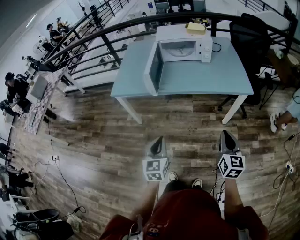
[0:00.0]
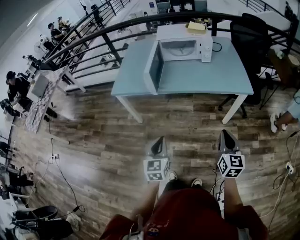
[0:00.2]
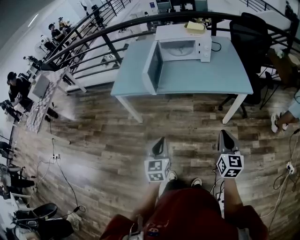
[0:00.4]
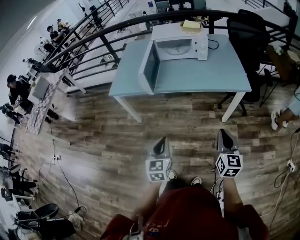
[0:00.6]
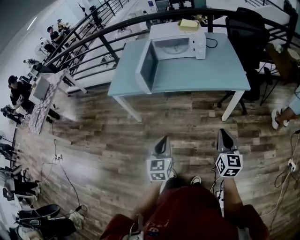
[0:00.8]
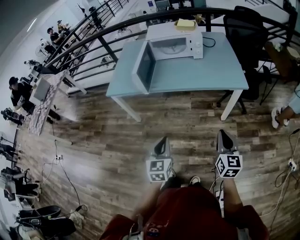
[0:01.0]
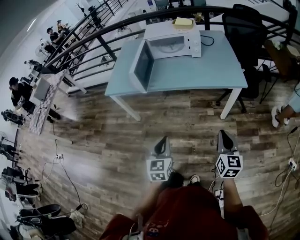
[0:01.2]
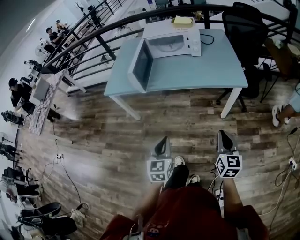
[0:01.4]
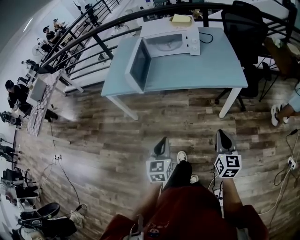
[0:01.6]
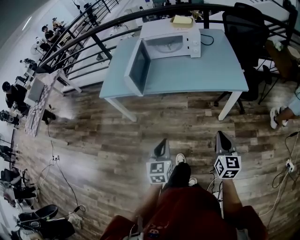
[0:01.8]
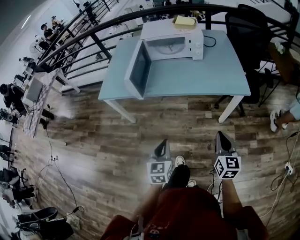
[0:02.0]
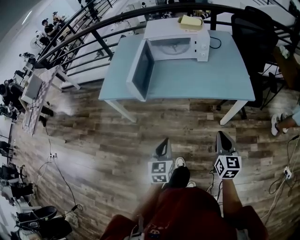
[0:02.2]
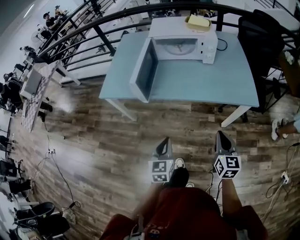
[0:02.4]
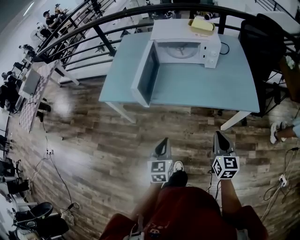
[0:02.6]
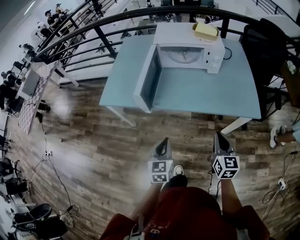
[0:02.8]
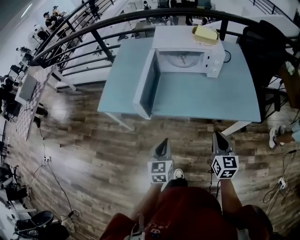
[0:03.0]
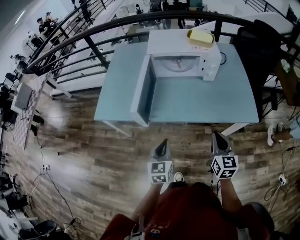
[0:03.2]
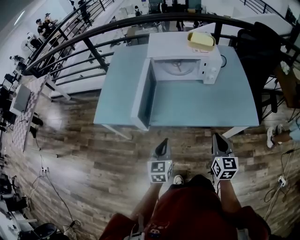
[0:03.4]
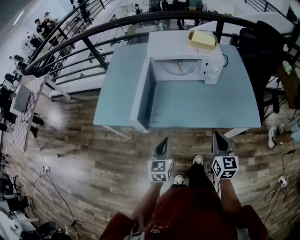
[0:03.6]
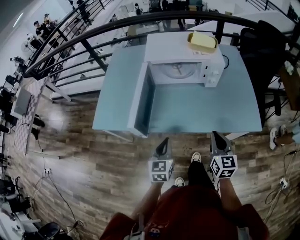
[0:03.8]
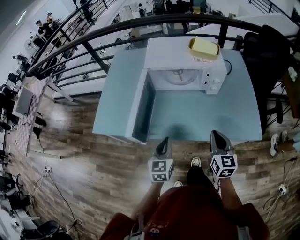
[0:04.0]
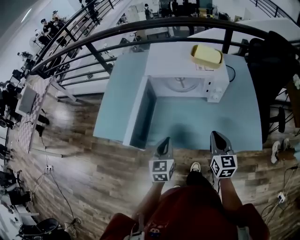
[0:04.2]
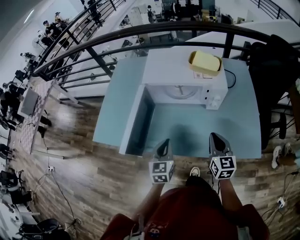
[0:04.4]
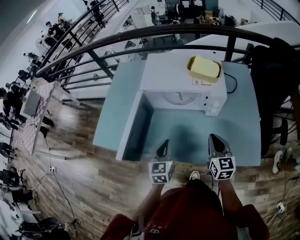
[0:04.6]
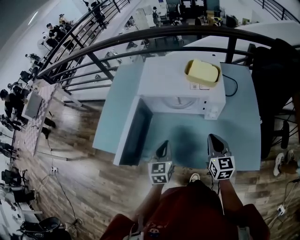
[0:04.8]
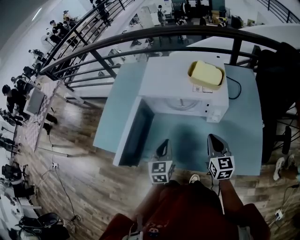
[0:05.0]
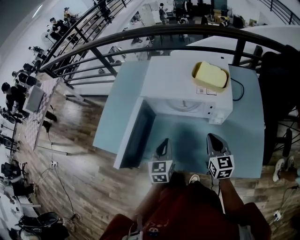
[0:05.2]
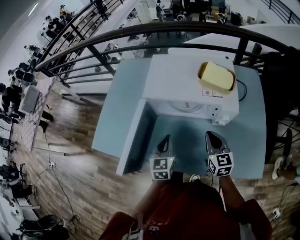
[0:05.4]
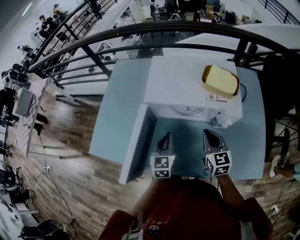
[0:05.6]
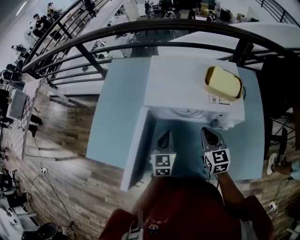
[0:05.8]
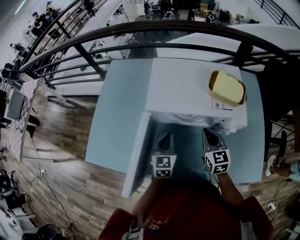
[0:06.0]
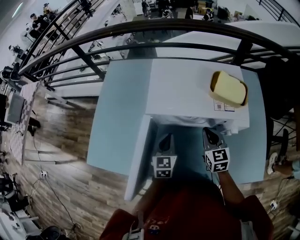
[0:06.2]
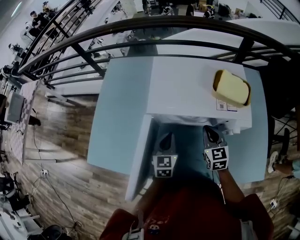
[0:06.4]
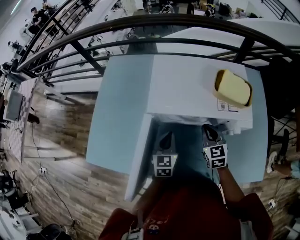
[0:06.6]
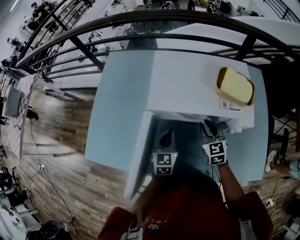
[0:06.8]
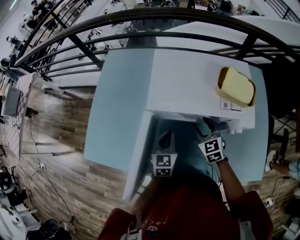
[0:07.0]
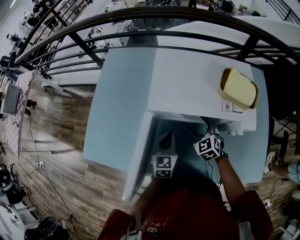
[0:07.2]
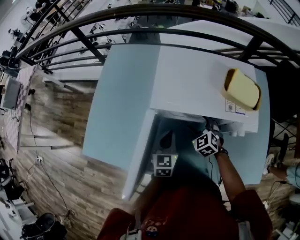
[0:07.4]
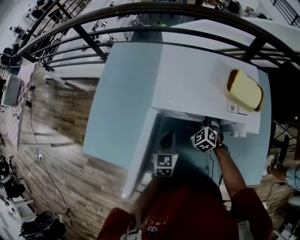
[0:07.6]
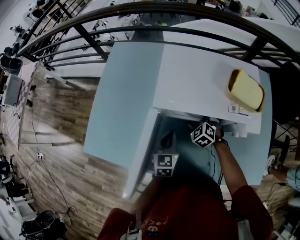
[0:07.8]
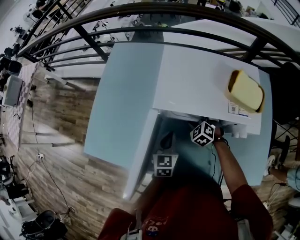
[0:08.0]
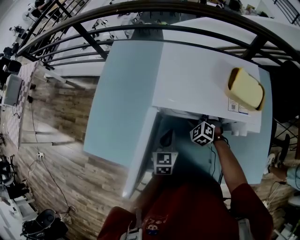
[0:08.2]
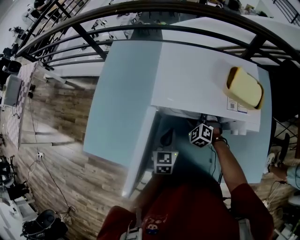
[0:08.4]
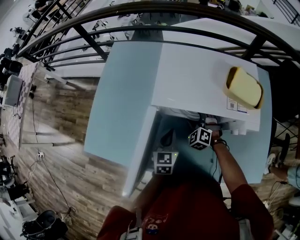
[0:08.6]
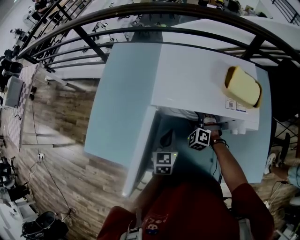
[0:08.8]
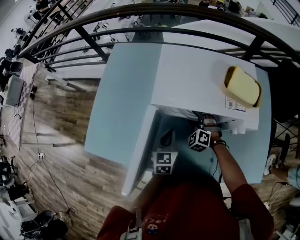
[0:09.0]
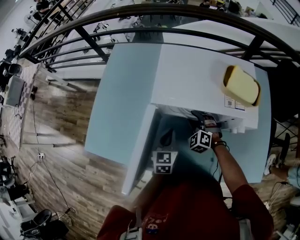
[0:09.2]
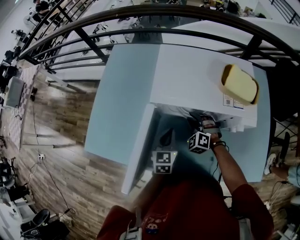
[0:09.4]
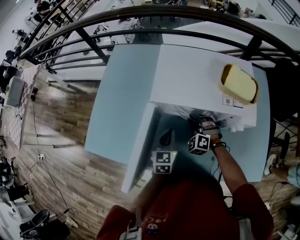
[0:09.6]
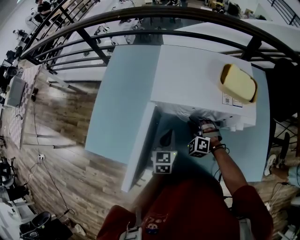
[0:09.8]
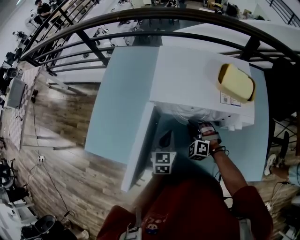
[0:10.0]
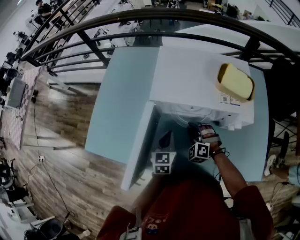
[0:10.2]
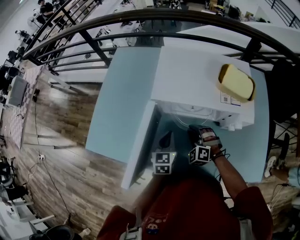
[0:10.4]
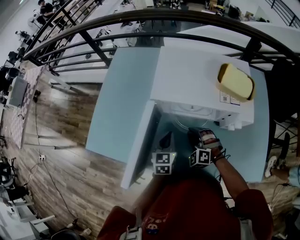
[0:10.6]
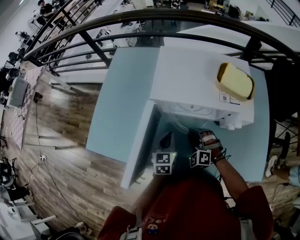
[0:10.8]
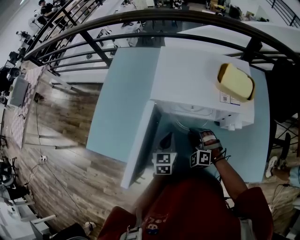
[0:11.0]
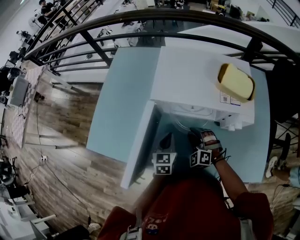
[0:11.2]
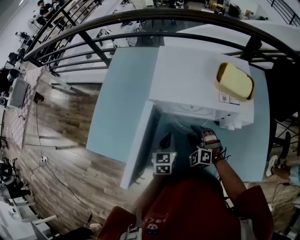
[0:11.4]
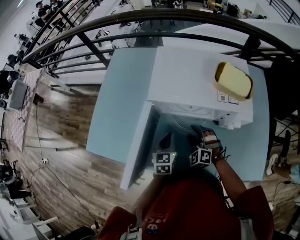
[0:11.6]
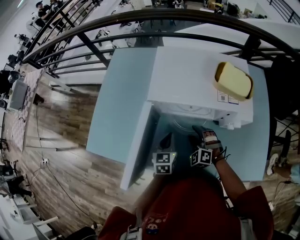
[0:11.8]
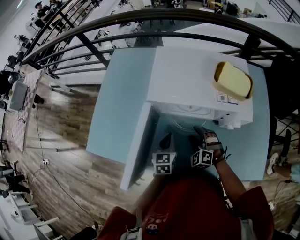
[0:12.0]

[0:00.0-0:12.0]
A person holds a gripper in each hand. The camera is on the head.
0:00.0 to 0:01.6: The two grippers go roughly 10 cm to the right.
0:01.6 to 0:03.0: The right gripper moves forward and to the left, approximately 30 cm, while the left gripper heads forward, covering roughly 25 cm.
0:03.0 to 0:04.4: Both grippers move forward, approximately 25 cm.
0:04.4 to 0:06.0: Both grippers travel together forward, approximately 25 cm.
0:06.0 to 0:07.6: The right gripper goes approximately 20 cm downward, forward and to the left, rotates approximately 40 degrees, and opens. The left gripper ends up some 5 cm from where it was.
0:07.6 to 0:09.0: The right gripper closes.
0:09.0 to 0:10.4: The right gripper is displaced backward by roughly 10 cm.
0:10.4 to 0:12.0: The grippers make only small movements.

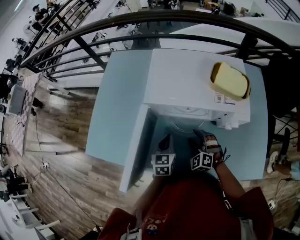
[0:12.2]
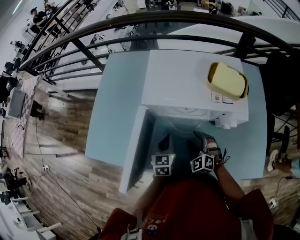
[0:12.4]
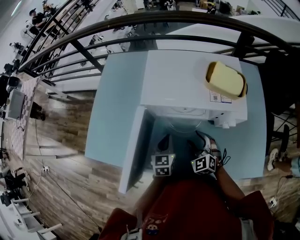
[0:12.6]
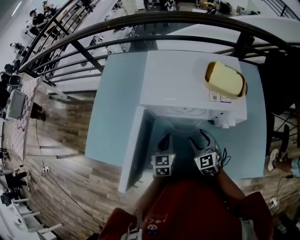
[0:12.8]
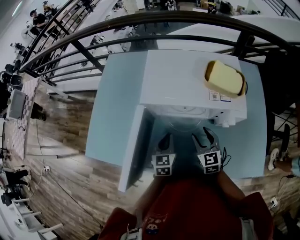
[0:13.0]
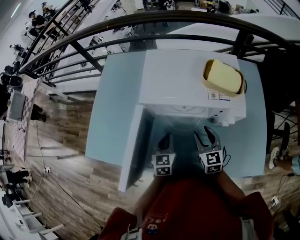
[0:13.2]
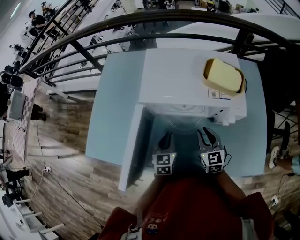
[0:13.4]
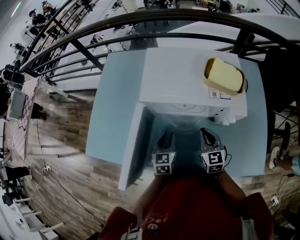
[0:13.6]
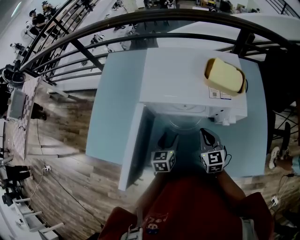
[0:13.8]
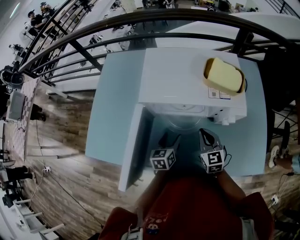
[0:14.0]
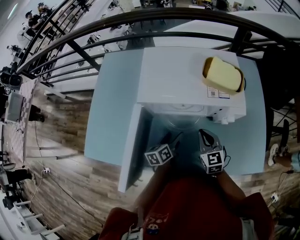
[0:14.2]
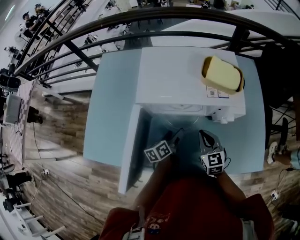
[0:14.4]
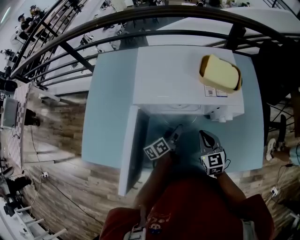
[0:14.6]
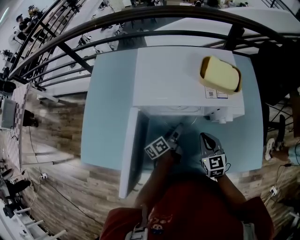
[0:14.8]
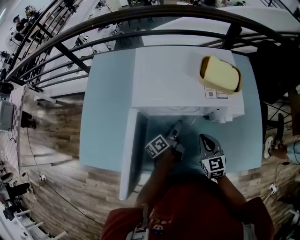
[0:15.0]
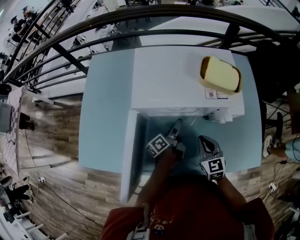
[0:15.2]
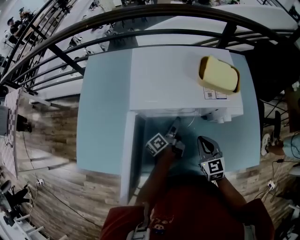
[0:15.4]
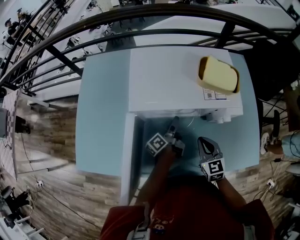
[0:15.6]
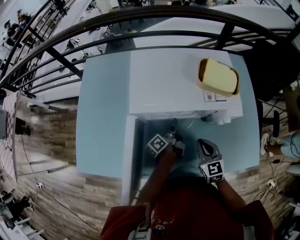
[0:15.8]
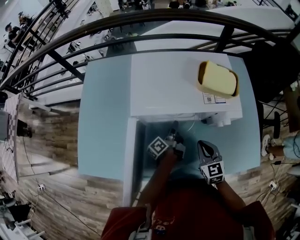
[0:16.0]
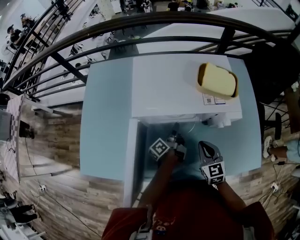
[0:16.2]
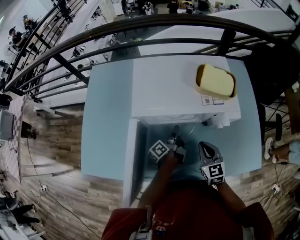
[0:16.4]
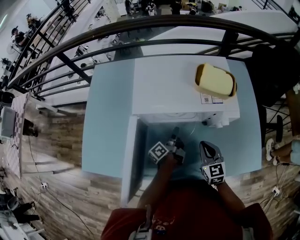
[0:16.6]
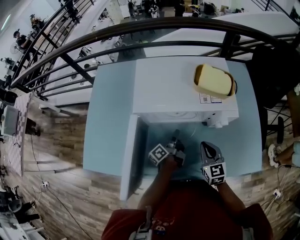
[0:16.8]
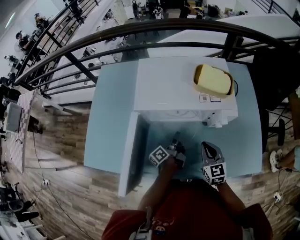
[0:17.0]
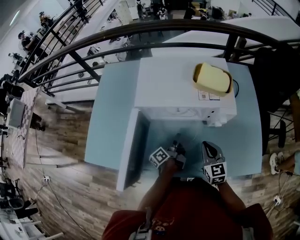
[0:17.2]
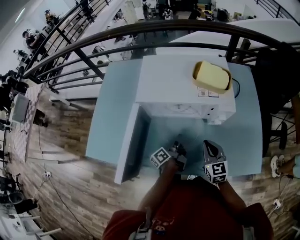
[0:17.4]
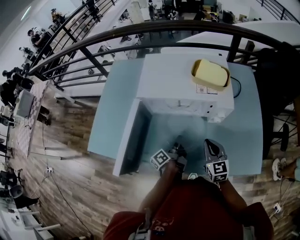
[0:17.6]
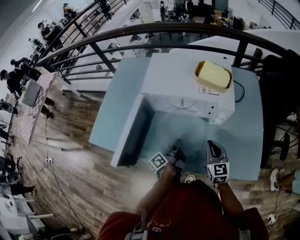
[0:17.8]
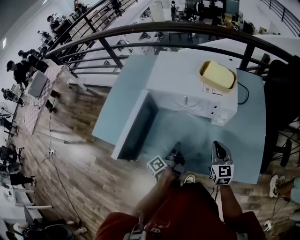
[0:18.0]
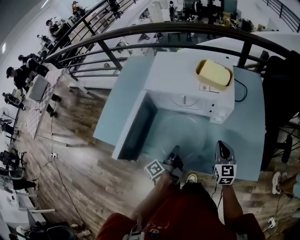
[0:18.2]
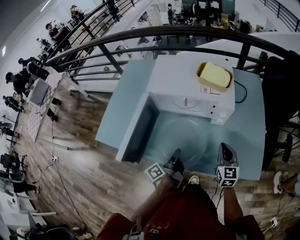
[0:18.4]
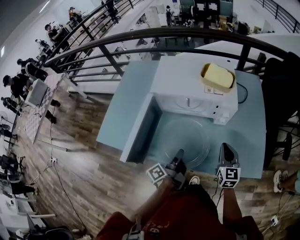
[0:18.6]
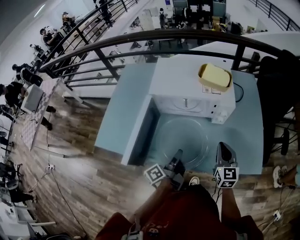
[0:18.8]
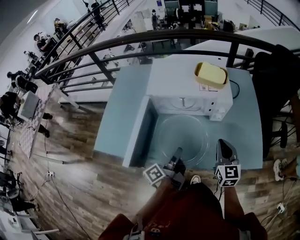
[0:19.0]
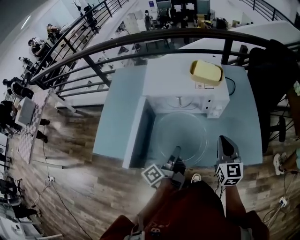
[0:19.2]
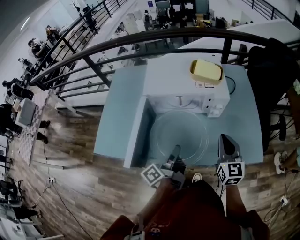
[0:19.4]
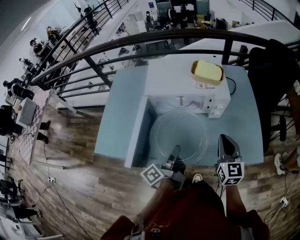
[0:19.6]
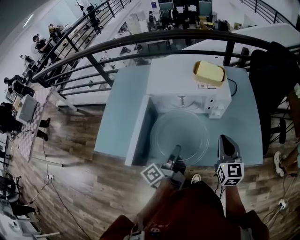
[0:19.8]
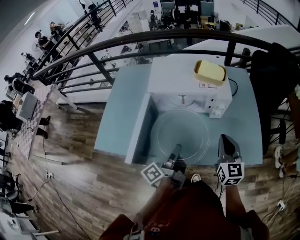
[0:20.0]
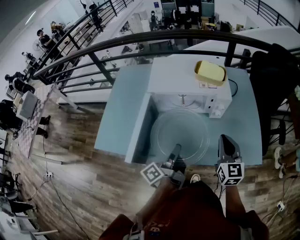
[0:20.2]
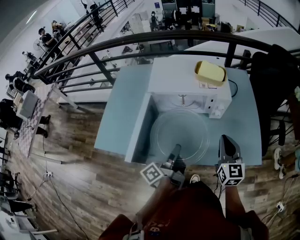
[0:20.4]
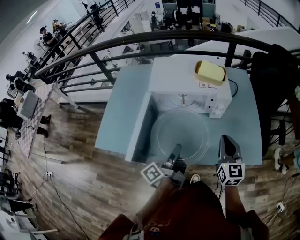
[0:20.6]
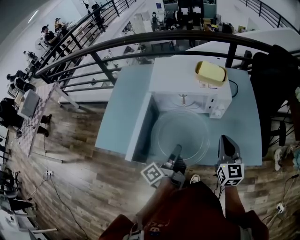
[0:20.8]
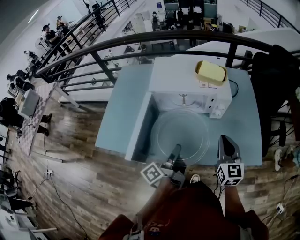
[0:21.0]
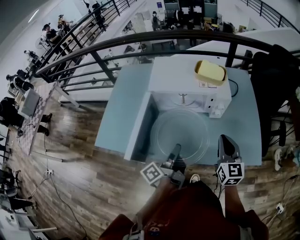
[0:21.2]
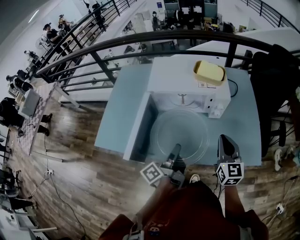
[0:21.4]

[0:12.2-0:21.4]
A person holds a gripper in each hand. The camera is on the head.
0:12.2 to 0:13.8: The right gripper travels upward and to the right by some 10 cm, rotates around the line of its fingers by roughly 50 degrees, clockwise from behind, and closes; the left gripper opens its fingers.
0:13.8 to 0:15.2: The left gripper moves forward, approximately 10 cm, and rolls counterclockwise, seen from behind, by some 60 degrees.
0:15.2 to 0:16.8: The left gripper closes.
0:16.8 to 0:18.4: The left gripper travels backward by roughly 20 cm. The right gripper moves to the right and backward, approximately 15 cm.
0:18.4 to 0:19.8: The left gripper is displaced upward by some 10 cm; the right gripper moves upward and to the left, approximately 10 cm.
0:19.8 to 0:21.4: The grippers stay close to where they were, moving slightly.

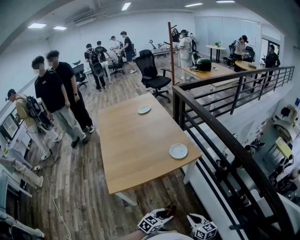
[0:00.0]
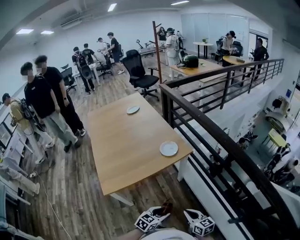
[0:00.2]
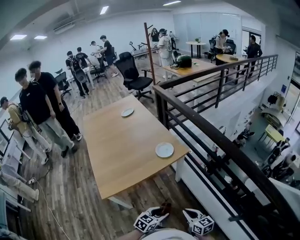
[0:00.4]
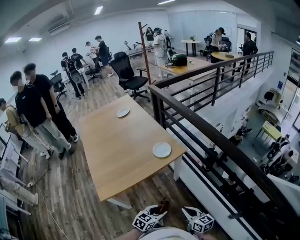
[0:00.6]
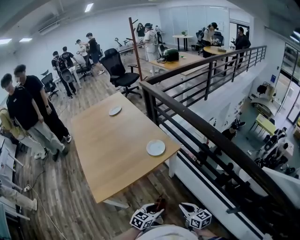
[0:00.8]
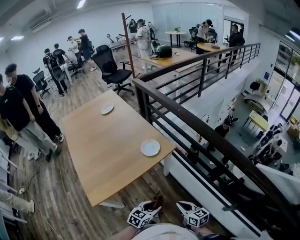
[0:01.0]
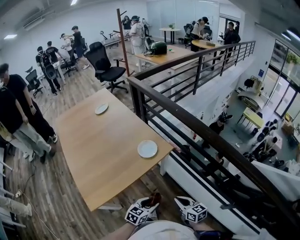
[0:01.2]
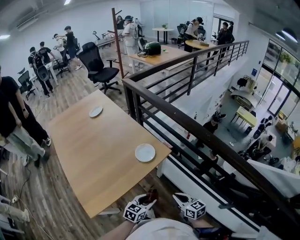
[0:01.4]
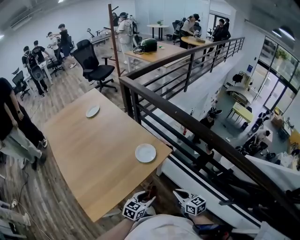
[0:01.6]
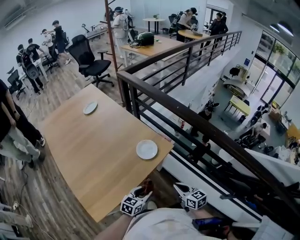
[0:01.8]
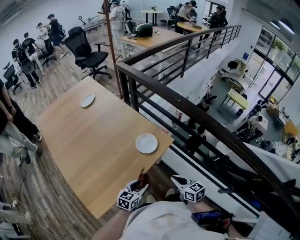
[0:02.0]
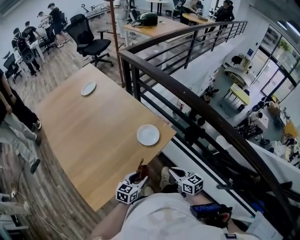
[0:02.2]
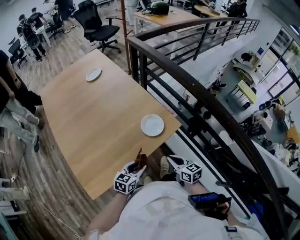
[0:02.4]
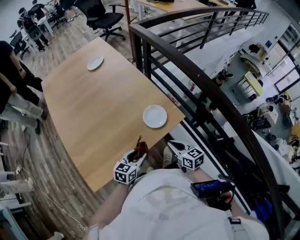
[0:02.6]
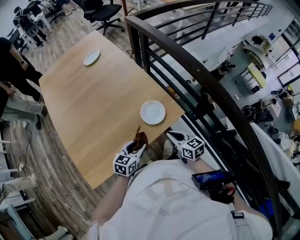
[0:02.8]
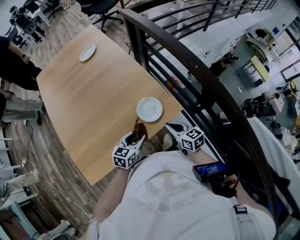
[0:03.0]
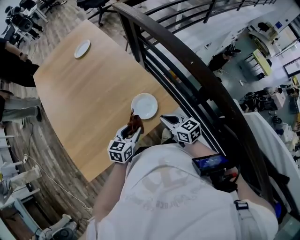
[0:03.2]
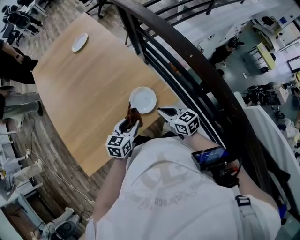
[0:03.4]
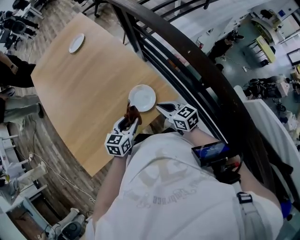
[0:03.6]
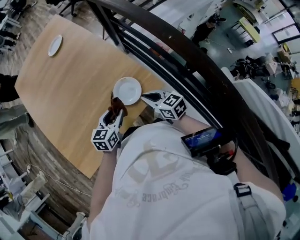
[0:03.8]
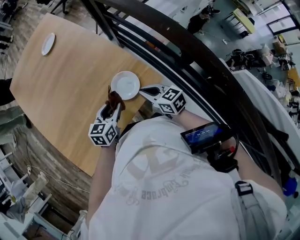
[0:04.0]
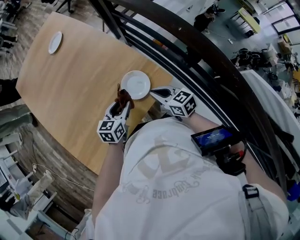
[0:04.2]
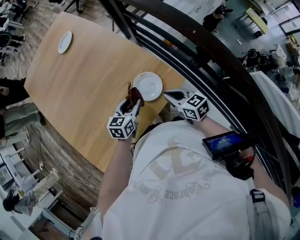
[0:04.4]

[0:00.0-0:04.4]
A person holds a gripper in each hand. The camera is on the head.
0:00.0 to 0:01.4: Both grippers move forward, approximately 15 cm.
0:01.4 to 0:03.0: The right gripper heads forward, covering roughly 25 cm. Meanwhile the left gripper heads forward and to the left, covering roughly 20 cm.
0:03.0 to 0:04.4: The right gripper goes some 5 cm forward. Meanwhile the left gripper travels forward by about 10 cm.
